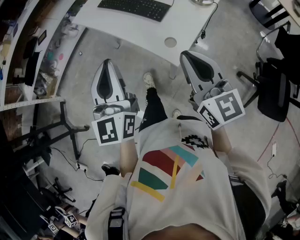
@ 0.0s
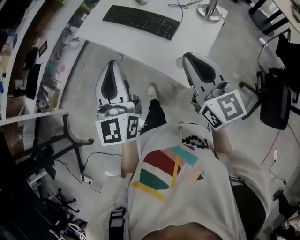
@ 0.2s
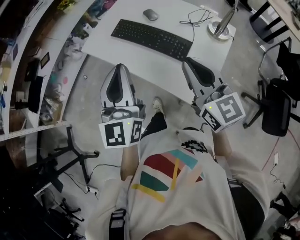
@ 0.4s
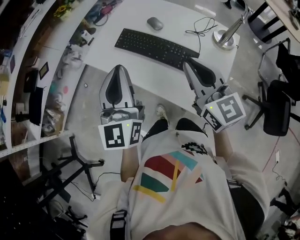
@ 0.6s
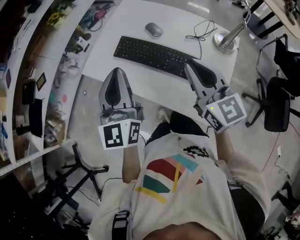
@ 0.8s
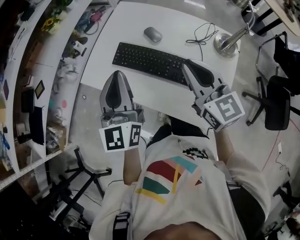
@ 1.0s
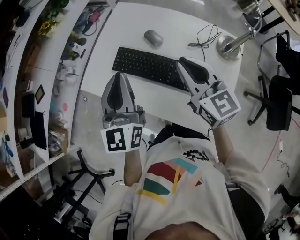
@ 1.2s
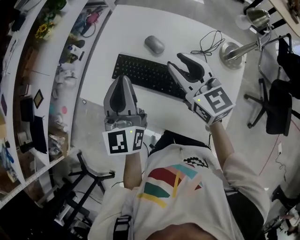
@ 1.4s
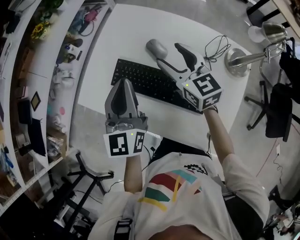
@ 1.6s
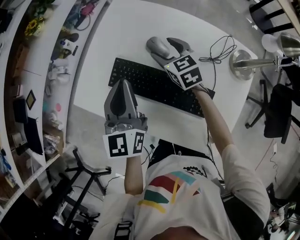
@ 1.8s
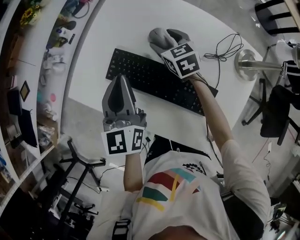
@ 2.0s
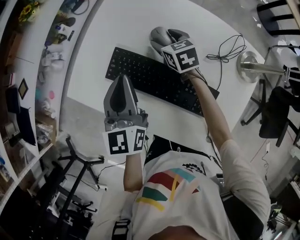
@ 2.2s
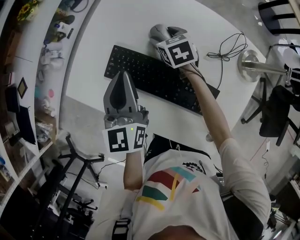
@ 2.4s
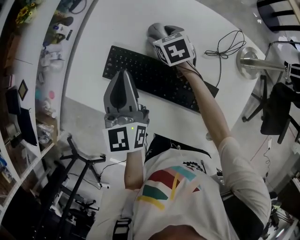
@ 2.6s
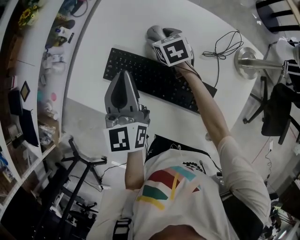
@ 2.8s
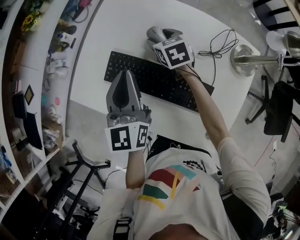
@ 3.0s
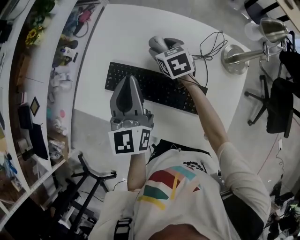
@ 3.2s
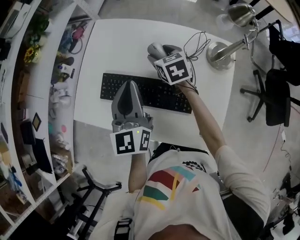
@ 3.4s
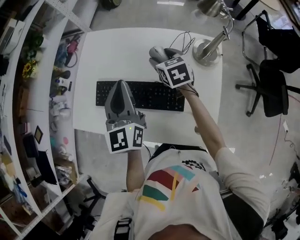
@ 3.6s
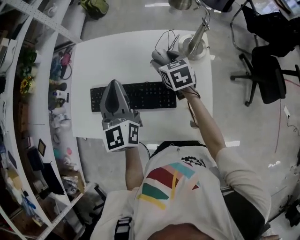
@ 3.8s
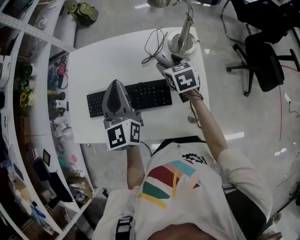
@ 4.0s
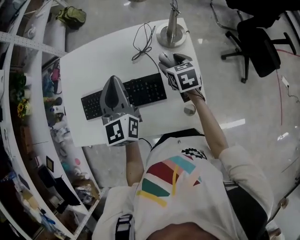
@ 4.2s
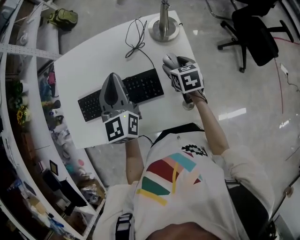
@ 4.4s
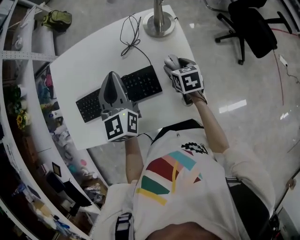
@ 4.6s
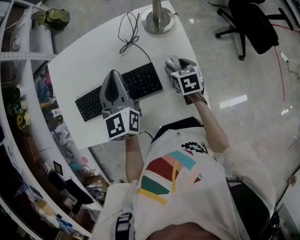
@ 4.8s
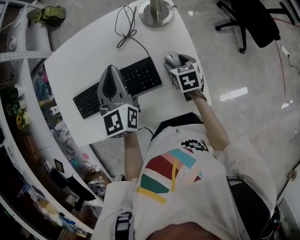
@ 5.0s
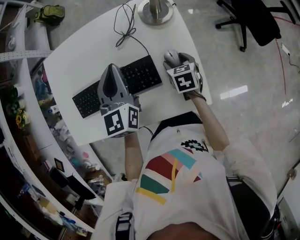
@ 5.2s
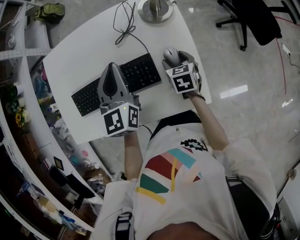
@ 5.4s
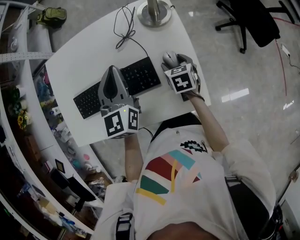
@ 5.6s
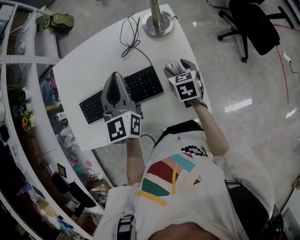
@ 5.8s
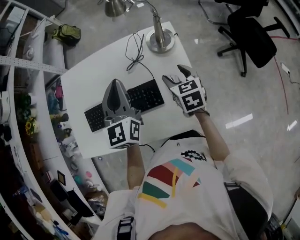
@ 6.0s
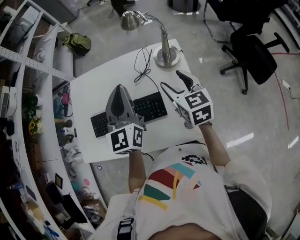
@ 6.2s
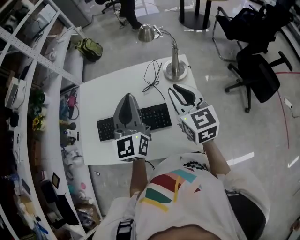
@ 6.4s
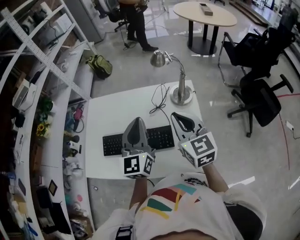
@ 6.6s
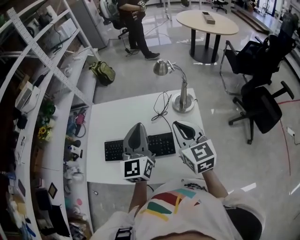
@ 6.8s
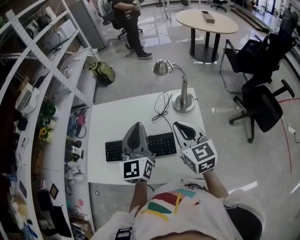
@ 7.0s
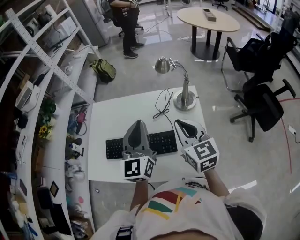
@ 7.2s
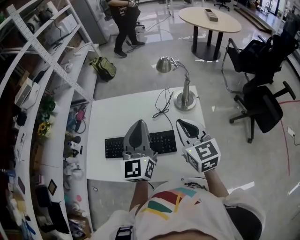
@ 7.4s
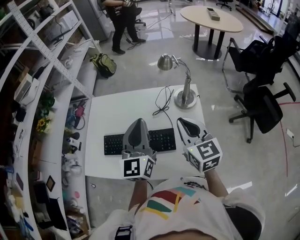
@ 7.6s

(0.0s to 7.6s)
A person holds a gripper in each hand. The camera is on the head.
0.0s - 1.6s: Both grippers are carried forward, approximately 60 cm. The right gripper opens up.
1.6s - 3.0s: The right gripper is displaced downward and forward by about 20 cm, and rotates approximately 30 degrees.
3.0s - 4.6s: The left gripper changes place by some 20 cm, and turns by about 30 degrees, while the right gripper reaches roughly 10 cm upward, then returns, and swivels some 50 degrees.
4.6s - 6.0s: The right gripper shifts about 10 cm upward.
6.0s - 7.6s: The left gripper goes some 10 cm upward. Meanwhile the right gripper travels upward by about 20 cm, rotates some 30 degrees, and closes.

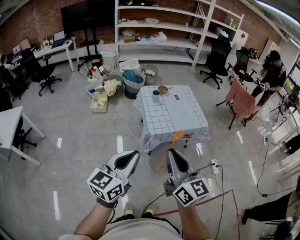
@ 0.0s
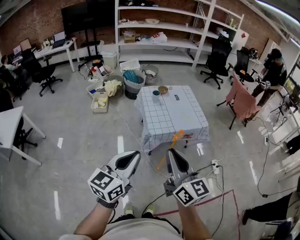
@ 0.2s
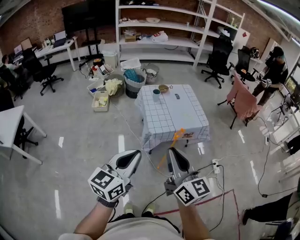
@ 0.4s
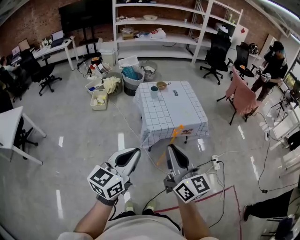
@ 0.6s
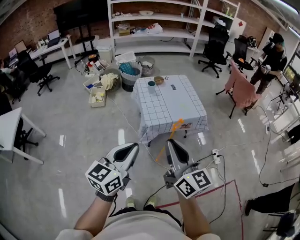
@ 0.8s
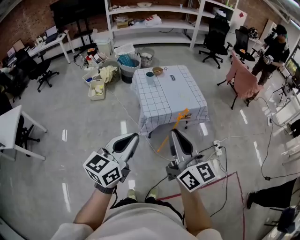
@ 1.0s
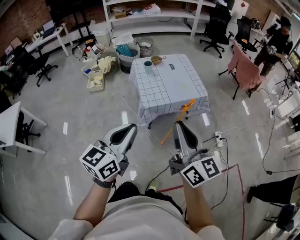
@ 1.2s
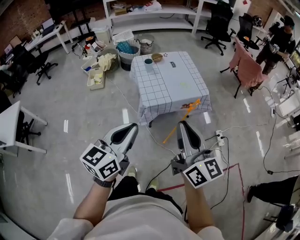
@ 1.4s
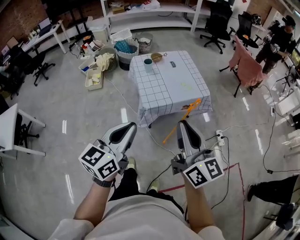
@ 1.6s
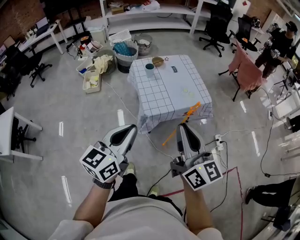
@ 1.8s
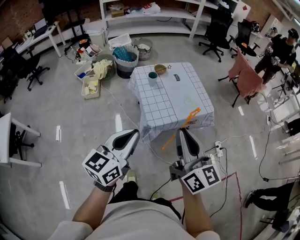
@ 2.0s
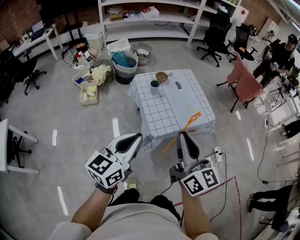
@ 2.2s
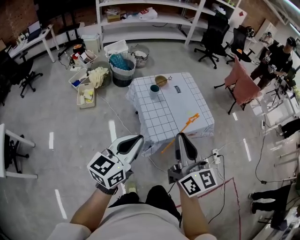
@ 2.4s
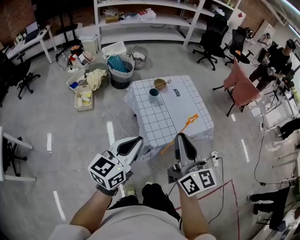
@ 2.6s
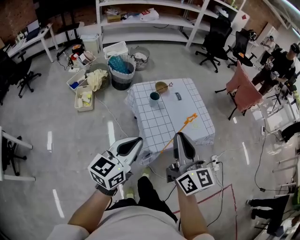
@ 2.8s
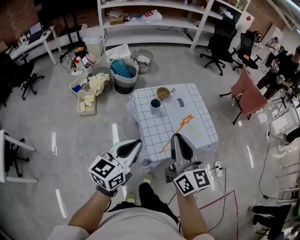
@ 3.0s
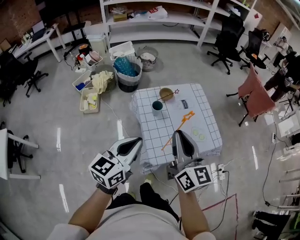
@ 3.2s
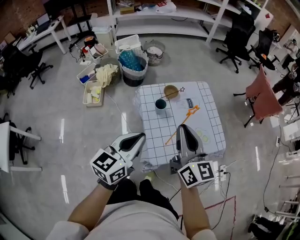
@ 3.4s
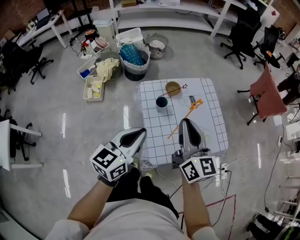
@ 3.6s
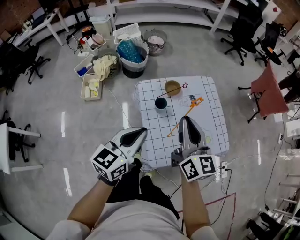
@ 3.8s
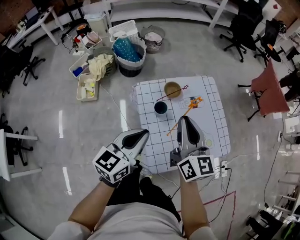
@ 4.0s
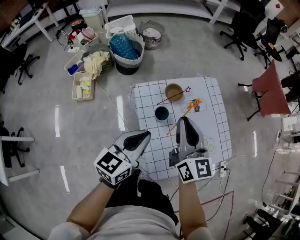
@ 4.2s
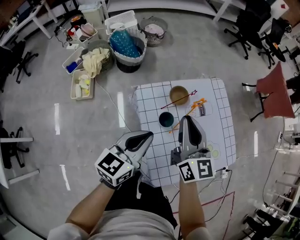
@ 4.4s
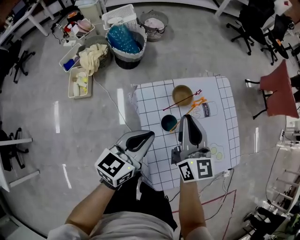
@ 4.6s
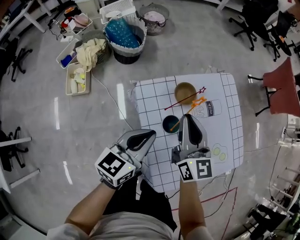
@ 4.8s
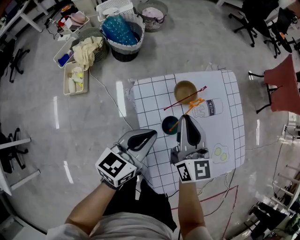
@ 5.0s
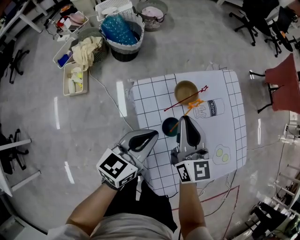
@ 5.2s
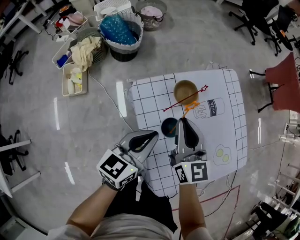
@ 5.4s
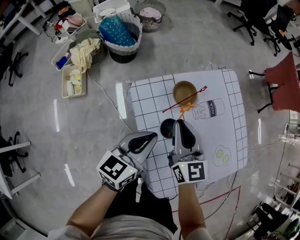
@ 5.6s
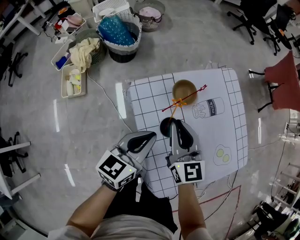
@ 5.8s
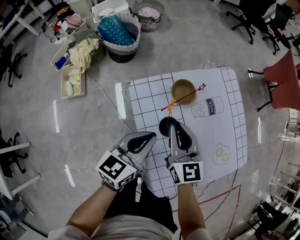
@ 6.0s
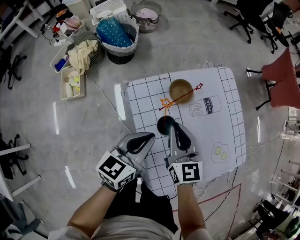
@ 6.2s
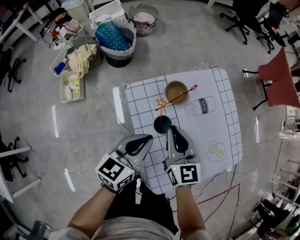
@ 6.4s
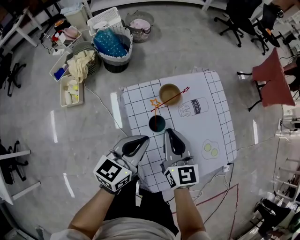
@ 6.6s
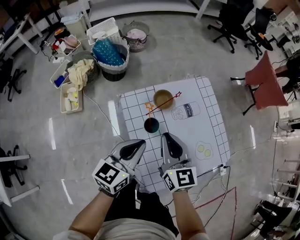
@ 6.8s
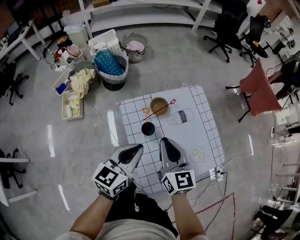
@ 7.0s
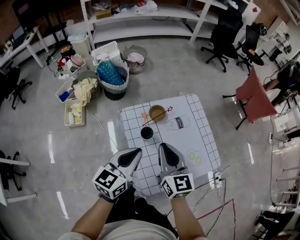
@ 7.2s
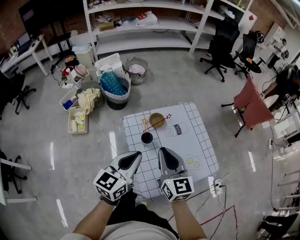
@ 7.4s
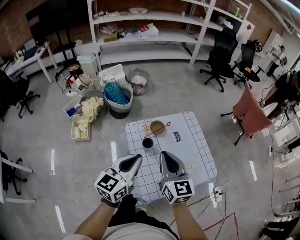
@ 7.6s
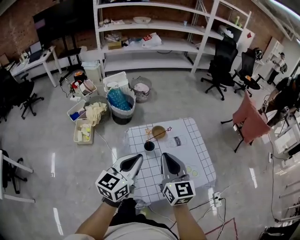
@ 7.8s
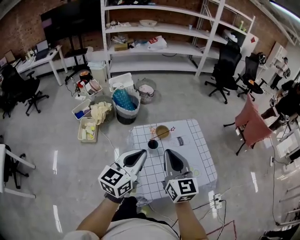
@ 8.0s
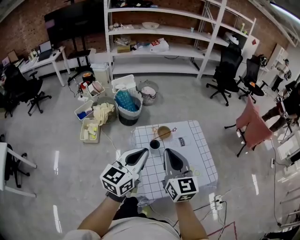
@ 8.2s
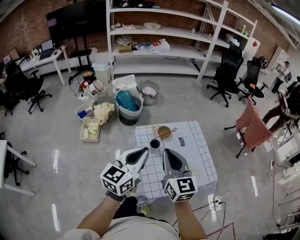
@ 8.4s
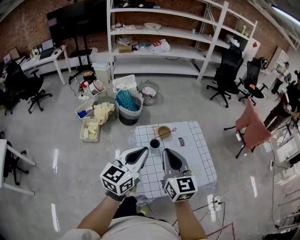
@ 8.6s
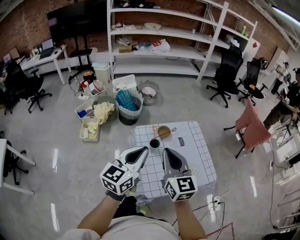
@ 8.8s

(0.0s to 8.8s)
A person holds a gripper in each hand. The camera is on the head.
0.0s - 1.4s: Both grippers travel together to the right, roughly 10 cm.
1.4s - 3.0s: The two grippers go about 35 cm forward and to the left.
3.0s - 4.4s: Both grippers move forward and downward, approximately 40 cm.
4.4s - 5.8s: The right gripper heads downward, covering some 15 cm, while the left gripper travels downward and forward by some 15 cm.
5.8s - 7.4s: Both grippers travel together upward and backward, approximately 25 cm.
7.4s - 8.8s: Both grippers travel together upward and backward, roughly 15 cm.

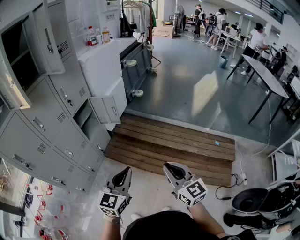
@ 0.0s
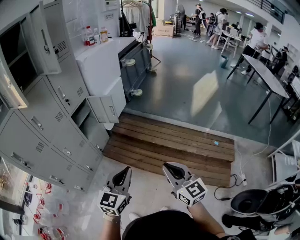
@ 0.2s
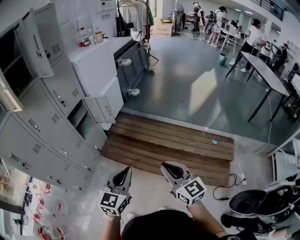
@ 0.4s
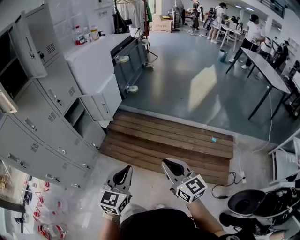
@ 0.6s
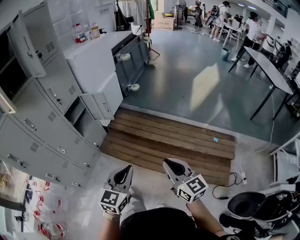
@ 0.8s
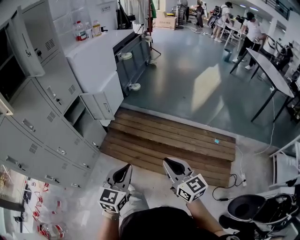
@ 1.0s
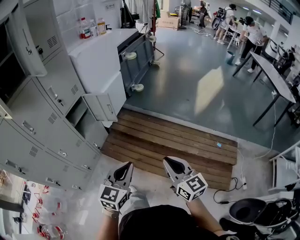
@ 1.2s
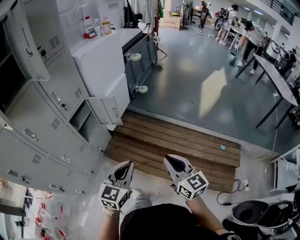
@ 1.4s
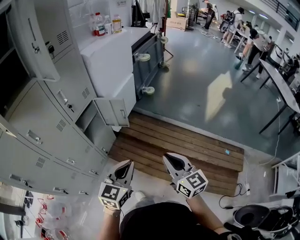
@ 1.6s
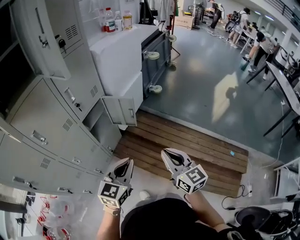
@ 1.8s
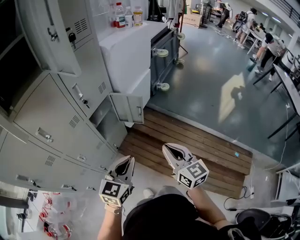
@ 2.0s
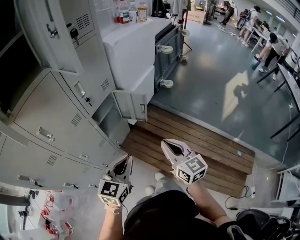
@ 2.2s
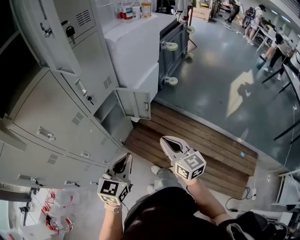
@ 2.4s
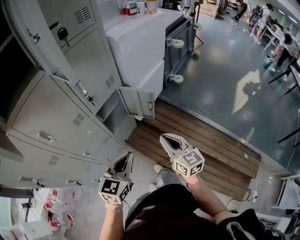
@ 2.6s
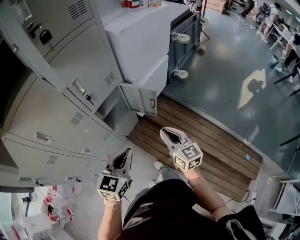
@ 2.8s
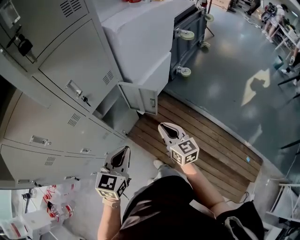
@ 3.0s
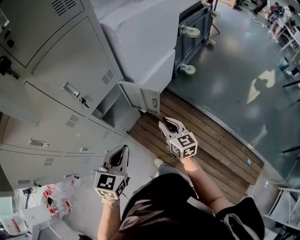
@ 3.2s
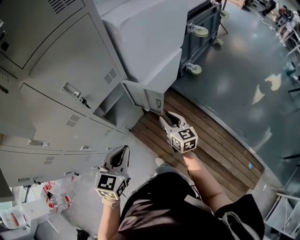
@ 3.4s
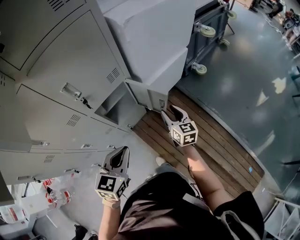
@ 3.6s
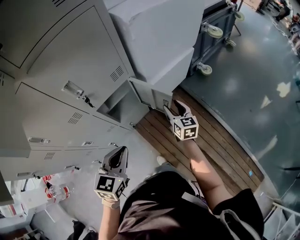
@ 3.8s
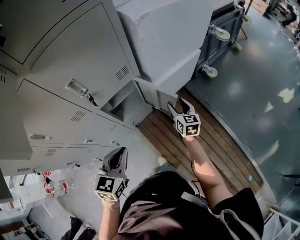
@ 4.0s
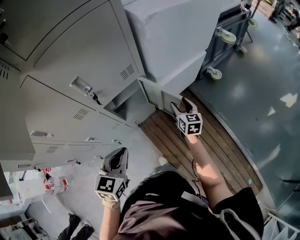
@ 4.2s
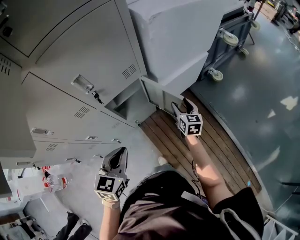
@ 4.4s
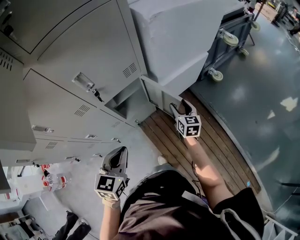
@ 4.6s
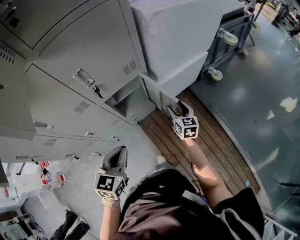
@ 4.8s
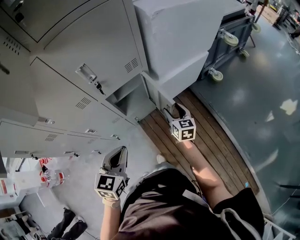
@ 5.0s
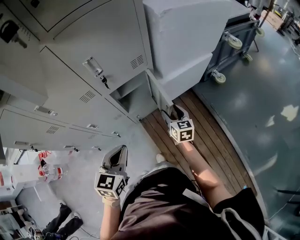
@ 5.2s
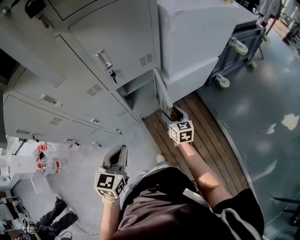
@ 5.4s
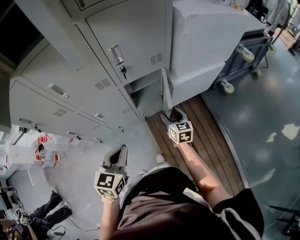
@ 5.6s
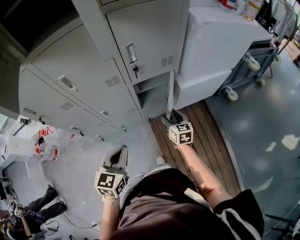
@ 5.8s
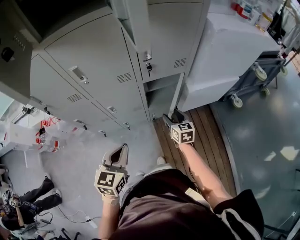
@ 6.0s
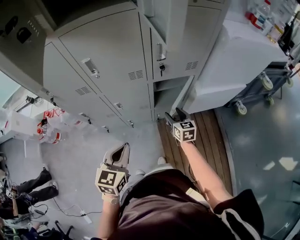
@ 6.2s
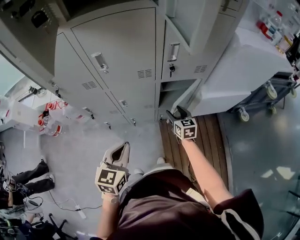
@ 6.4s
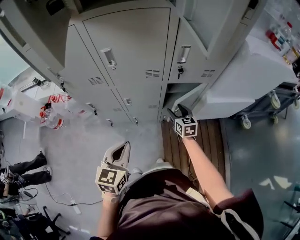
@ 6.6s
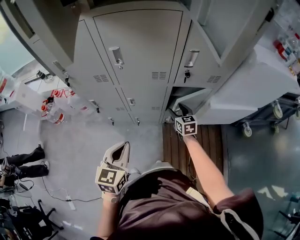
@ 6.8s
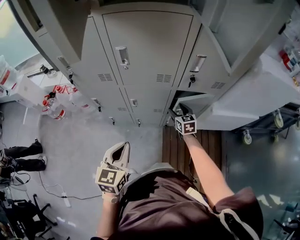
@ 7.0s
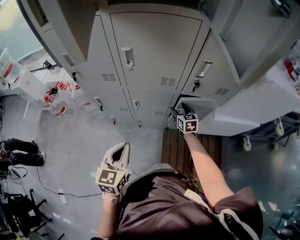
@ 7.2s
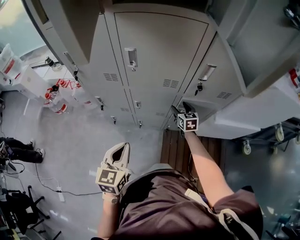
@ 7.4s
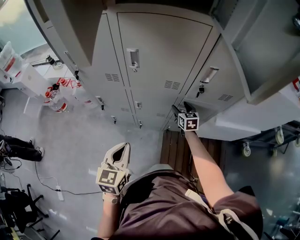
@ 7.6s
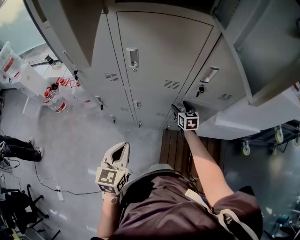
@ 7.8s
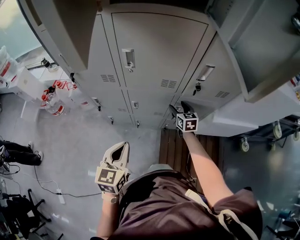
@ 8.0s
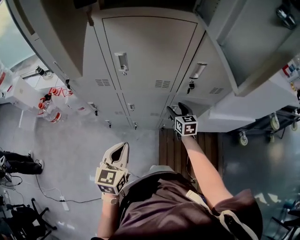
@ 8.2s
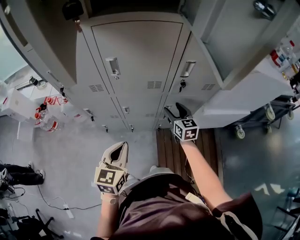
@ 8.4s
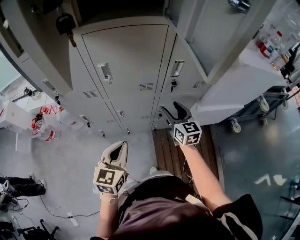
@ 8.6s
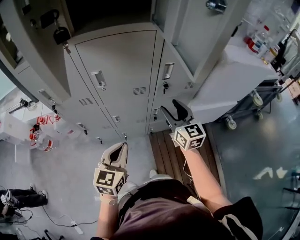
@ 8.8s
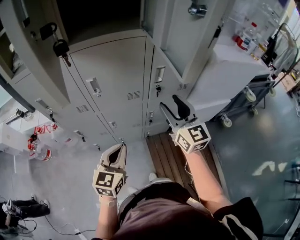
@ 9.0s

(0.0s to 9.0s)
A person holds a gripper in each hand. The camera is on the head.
0.0s - 1.6s: Both grippers move forward, about 20 cm.
1.6s - 3.0s: The right gripper travels forward by roughly 30 cm, while the left gripper moves forward and to the left, approximately 25 cm.
3.0s - 4.4s: The left gripper goes approximately 5 cm forward, and turns by about 20 degrees. Meanwhile the right gripper is displaced forward and downward by some 25 cm, and opens.
4.4s - 6.0s: The left gripper travels backward and to the left by about 15 cm, and changes its angle by roughly 20 degrees. The right gripper is displaced to the left and backward by roughly 25 cm, and rotates roughly 30 degrees.
6.0s - 7.6s: The left gripper travels to the left by about 10 cm, and changes its angle by some 30 degrees. Meanwhile the right gripper goes about 20 cm forward and to the left, and turns by roughly 20 degrees.
7.6s - 9.0s: The right gripper heads upward and backward, covering roughly 35 cm, and angles its fingers upward, by roughly 30 degrees, while the left gripper is displaced upward by roughly 10 cm, and rotates about 30 degrees.
